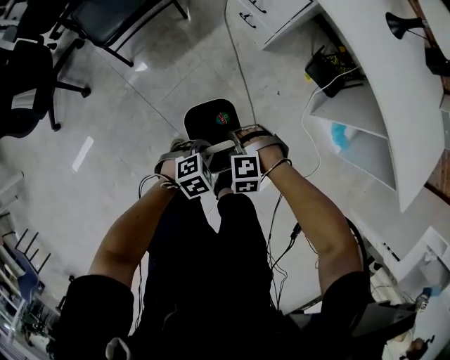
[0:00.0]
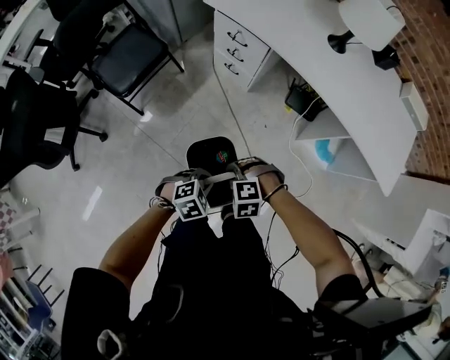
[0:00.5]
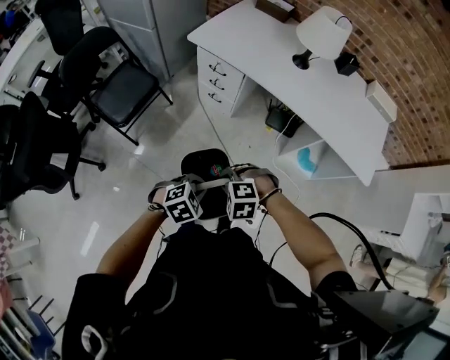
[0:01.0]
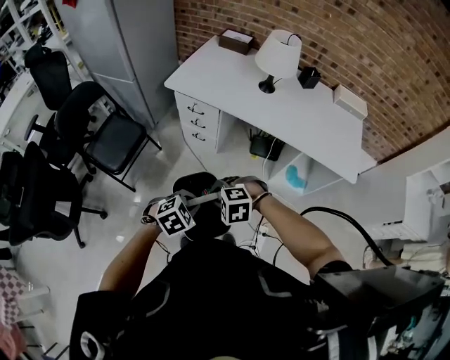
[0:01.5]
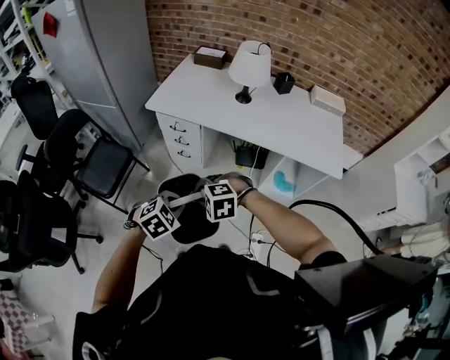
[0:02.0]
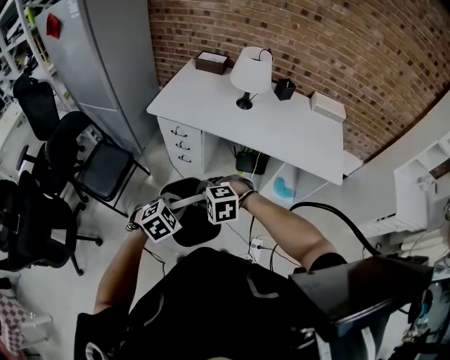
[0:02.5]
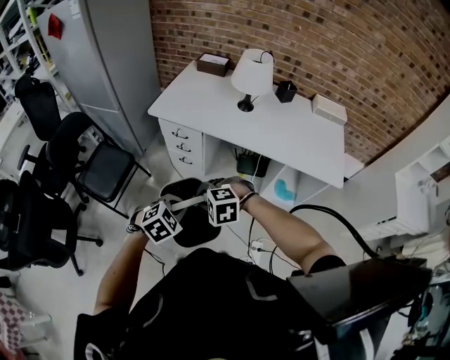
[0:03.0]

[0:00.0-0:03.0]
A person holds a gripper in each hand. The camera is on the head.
0:00.0 to 0:01.5: The two grippers go about 35 cm upward. The right gripper changes its angle by some 20 degrees. The left gripper rotates approximately 20 degrees.
0:01.5 to 0:03.0: The left gripper changes place by some 5 cm. The right gripper shifts by roughly 5 cm.

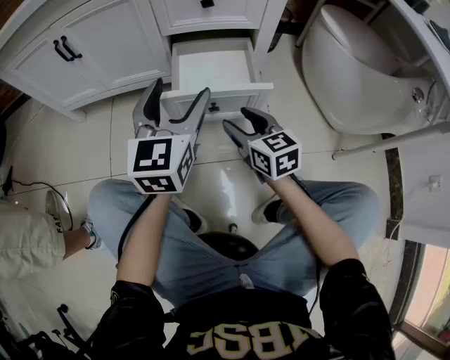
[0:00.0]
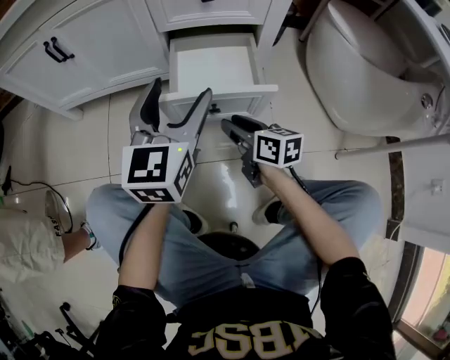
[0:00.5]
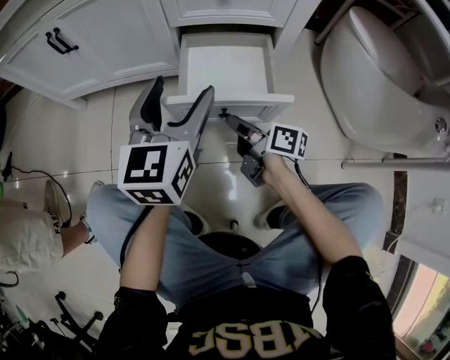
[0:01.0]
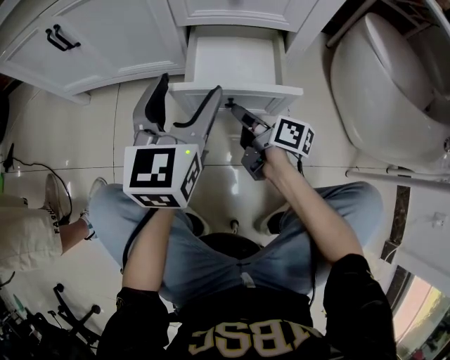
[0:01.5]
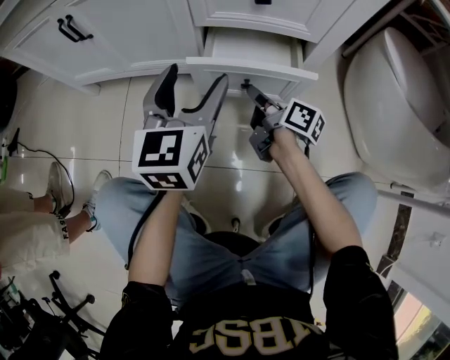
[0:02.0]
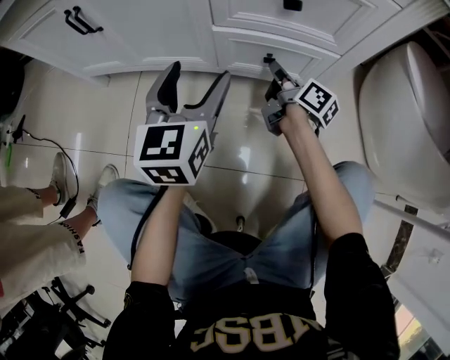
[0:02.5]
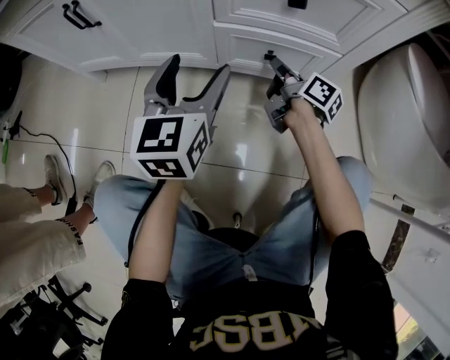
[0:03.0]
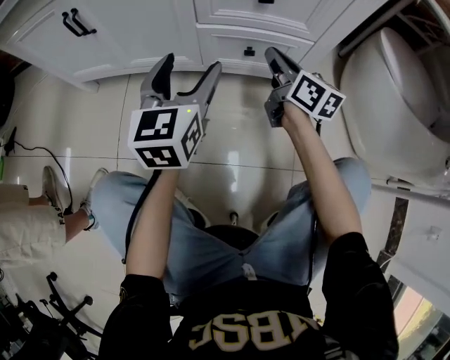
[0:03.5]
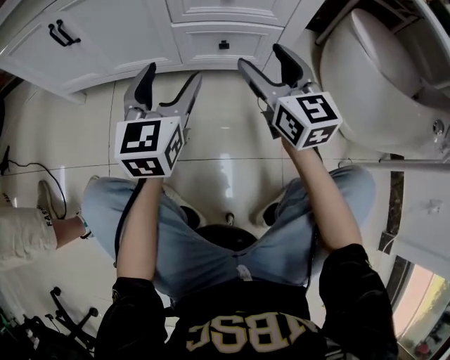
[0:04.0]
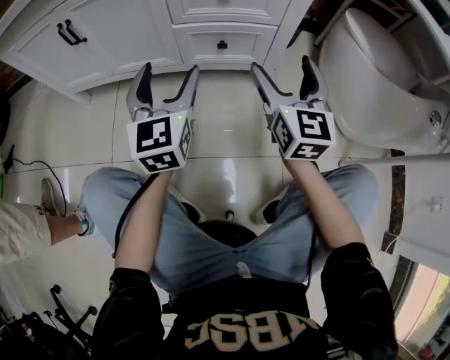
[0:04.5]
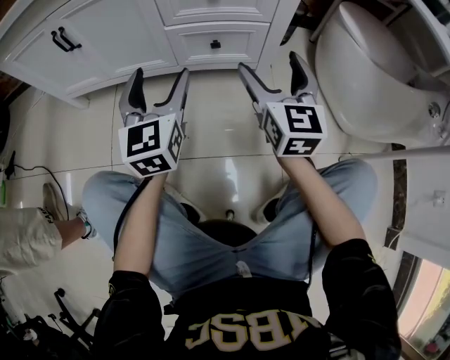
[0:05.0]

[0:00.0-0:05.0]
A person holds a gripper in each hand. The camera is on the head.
0:00.0 to 0:02.5: The right gripper heads forward, covering approximately 25 cm, rolls clockwise, seen from behind, by some 50 degrees, and closes its fingers; the left gripper heads forward, covering about 15 cm.
0:02.5 to 0:05.0: The left gripper goes some 10 cm backward. The right gripper heads backward and upward, covering roughly 25 cm, rolls counterclockwise, seen from behind, by about 70 degrees, and opens up.

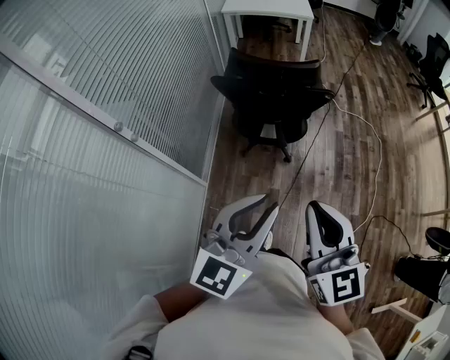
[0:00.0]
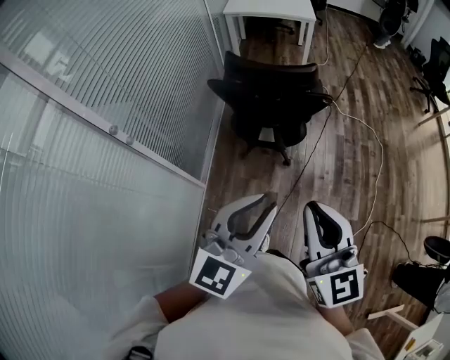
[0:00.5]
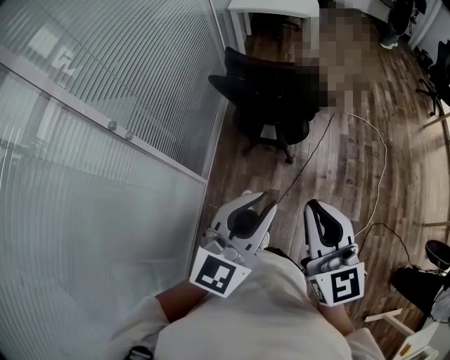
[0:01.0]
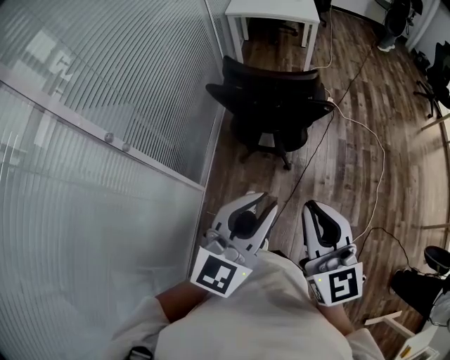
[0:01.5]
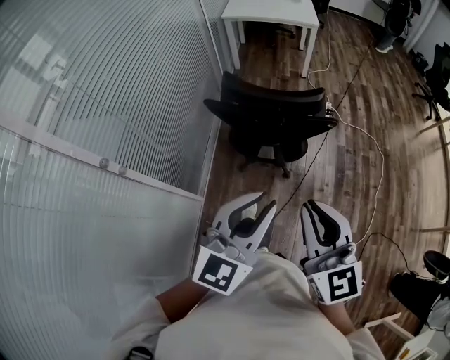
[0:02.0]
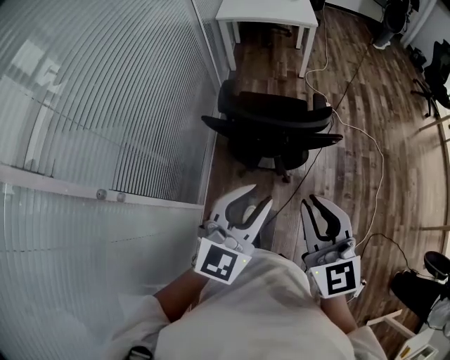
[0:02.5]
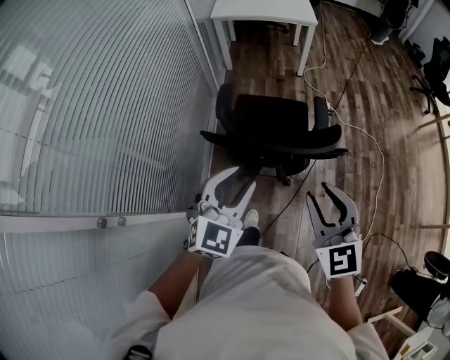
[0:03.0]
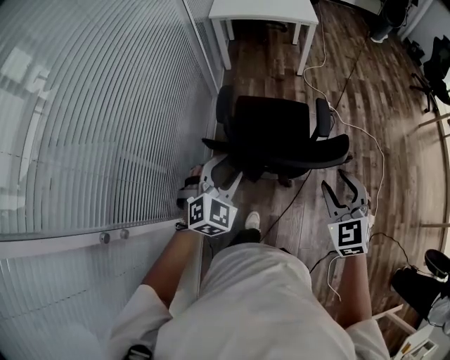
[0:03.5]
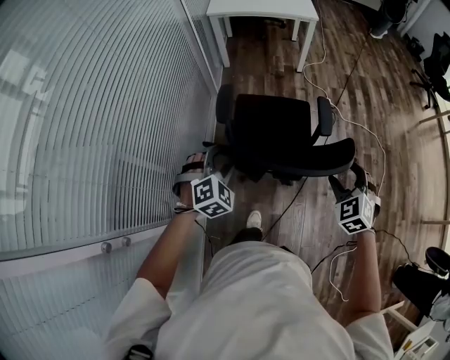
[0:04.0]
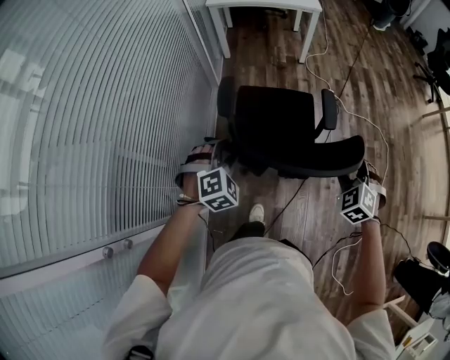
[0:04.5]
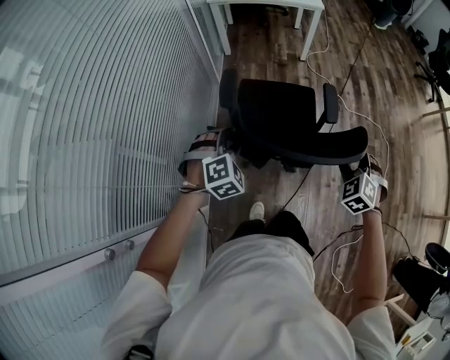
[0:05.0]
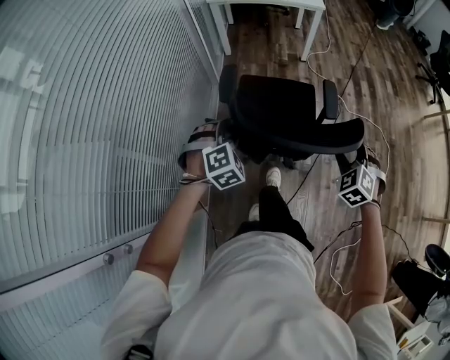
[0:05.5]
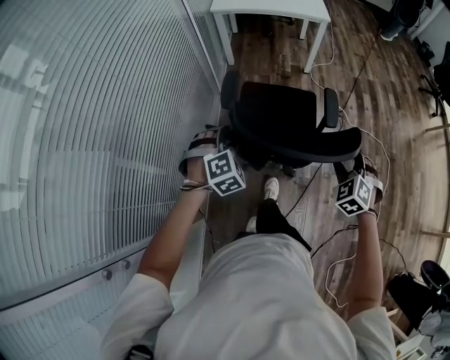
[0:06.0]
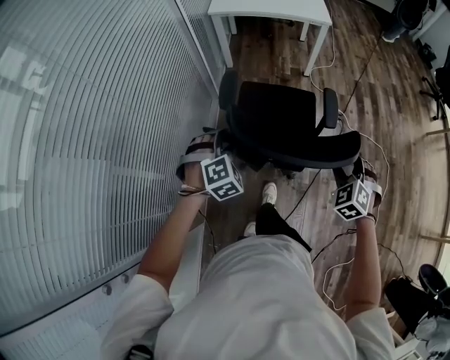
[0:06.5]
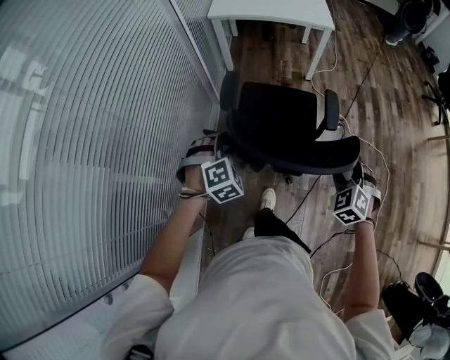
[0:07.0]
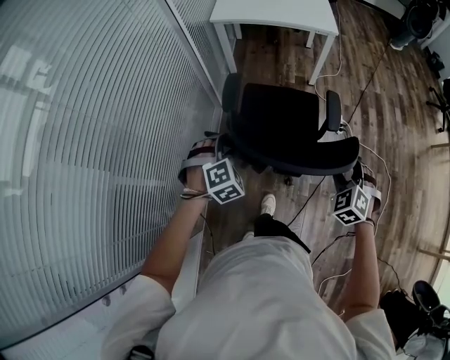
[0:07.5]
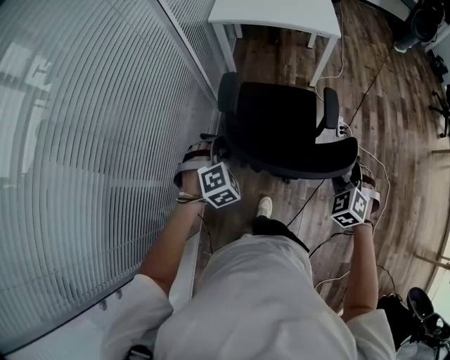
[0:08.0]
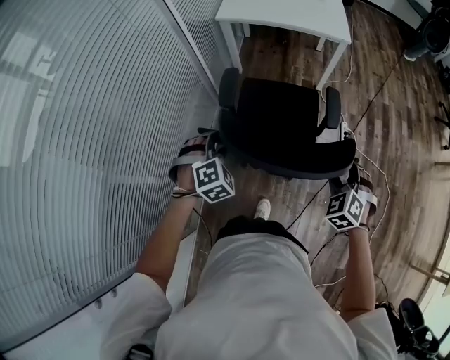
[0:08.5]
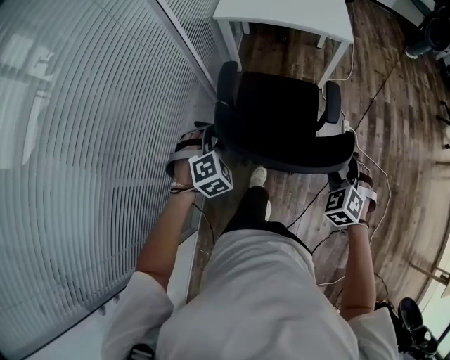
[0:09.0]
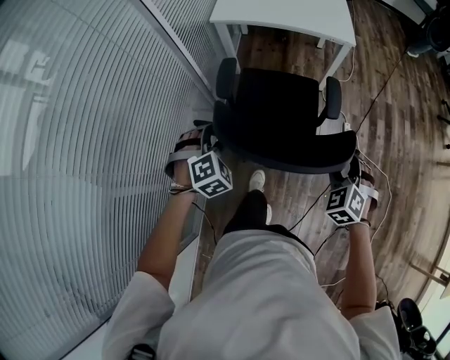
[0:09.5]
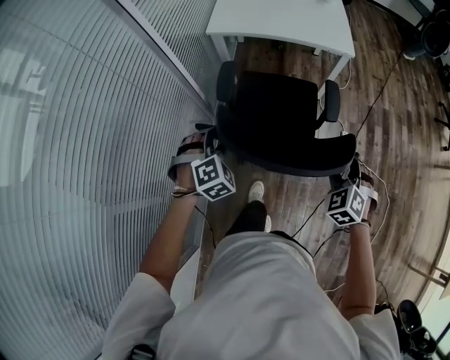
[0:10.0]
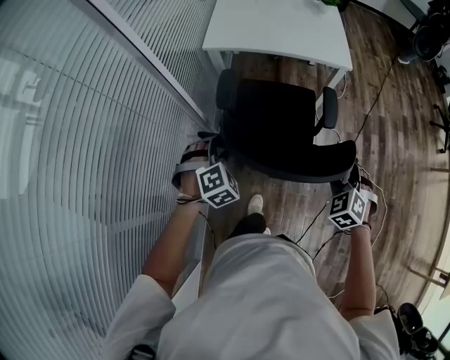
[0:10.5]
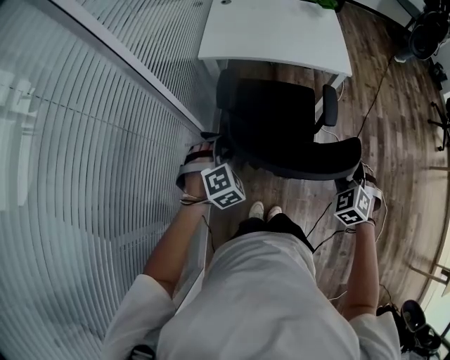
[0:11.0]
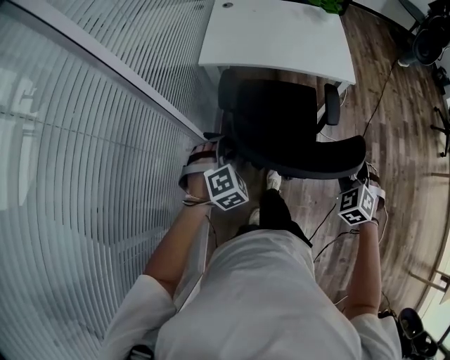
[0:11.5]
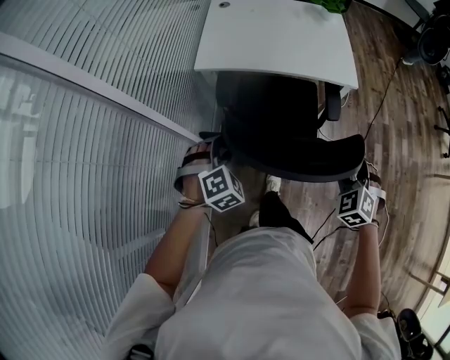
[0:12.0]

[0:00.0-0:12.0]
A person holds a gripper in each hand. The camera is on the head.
0:00.0 to 0:02.0: Both grippers move forward, about 15 cm.
0:02.0 to 0:04.0: The right gripper is displaced forward and downward by approximately 35 cm, tilts its fingers about 40 degrees downward, and opens up. The left gripper shifts some 40 cm forward, downward and to the left, points its fingers some 40 degrees further downward, and opens up.
0:04.0 to 0:06.0: The two grippers go approximately 15 cm forward.
0:06.0 to 0:08.0: The grippers both shift forward by approximately 15 cm.
0:08.0 to 0:10.0: The two grippers go roughly 20 cm forward.
0:10.0 to 0:12.0: The two grippers go about 20 cm forward.

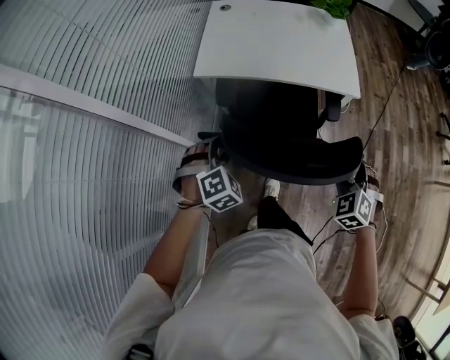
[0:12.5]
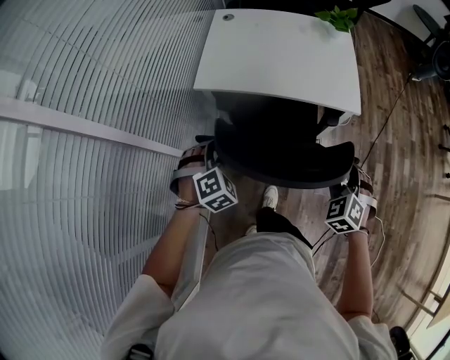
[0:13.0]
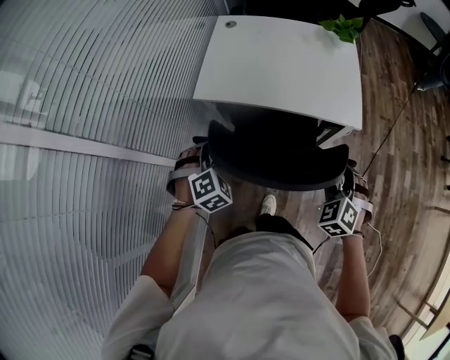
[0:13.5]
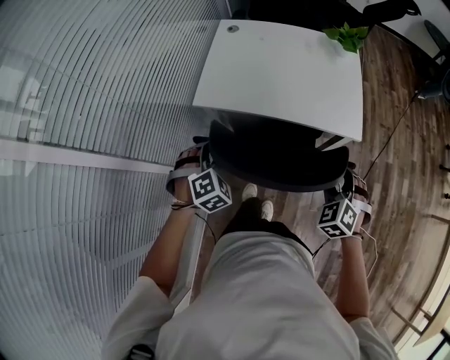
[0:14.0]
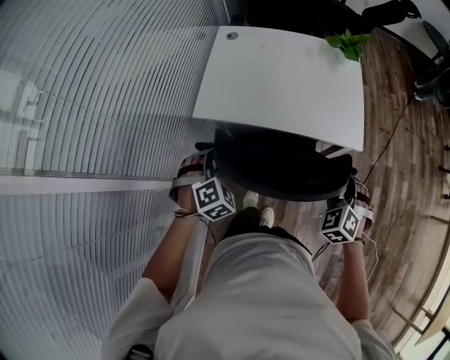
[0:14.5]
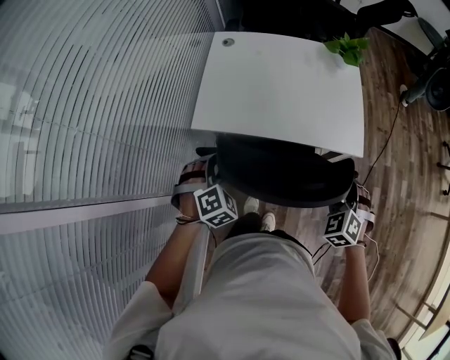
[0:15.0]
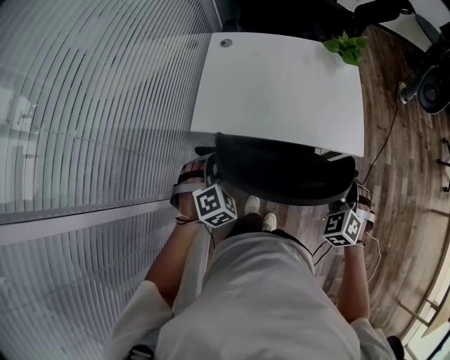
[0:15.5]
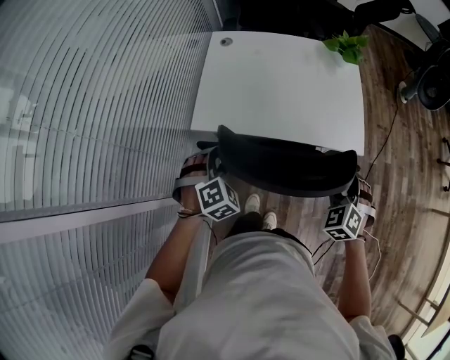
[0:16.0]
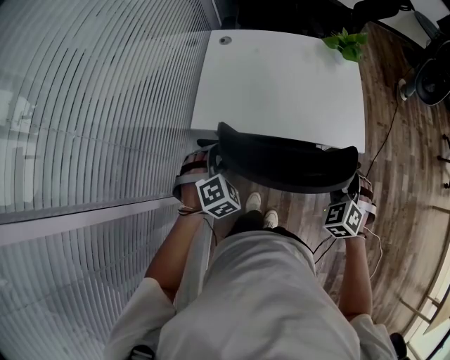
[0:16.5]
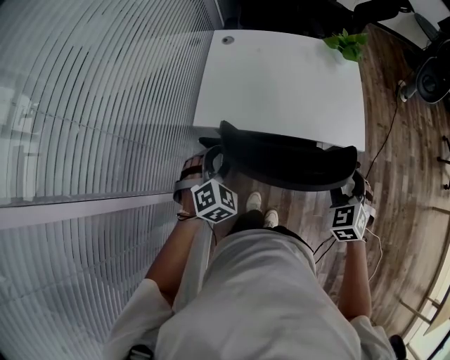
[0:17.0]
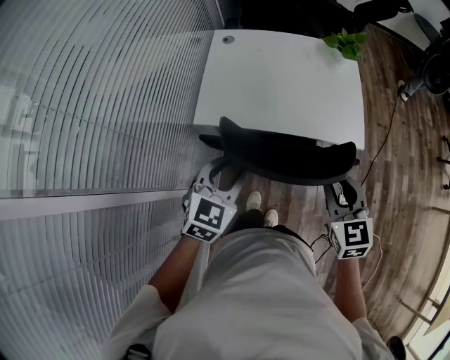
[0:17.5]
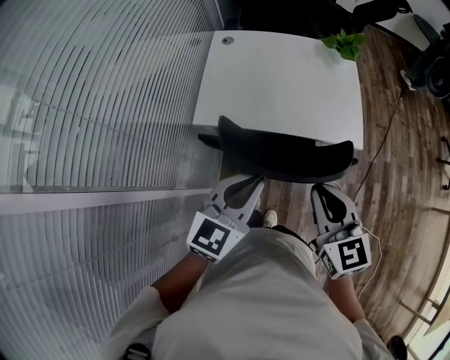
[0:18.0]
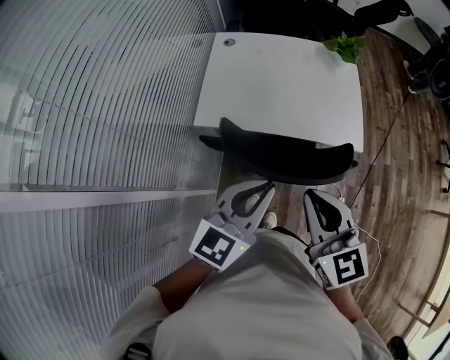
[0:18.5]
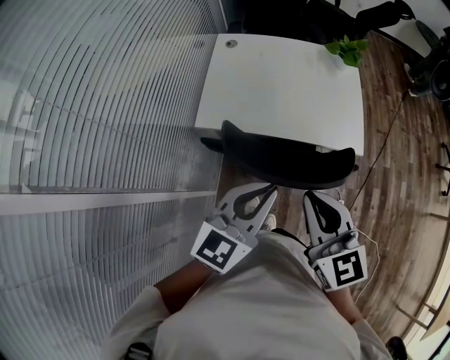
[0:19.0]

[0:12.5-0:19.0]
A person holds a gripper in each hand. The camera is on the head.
0:12.5 to 0:14.5: Both grippers move forward, roughly 20 cm.
0:17.0 to 0:19.0: The right gripper travels upward, to the left and backward by about 20 cm, turns by approximately 50 degrees, and closes its fingers, while the left gripper shifts approximately 25 cm upward, to the right and backward, tips its fingers upward by about 40 degrees, and closes.
